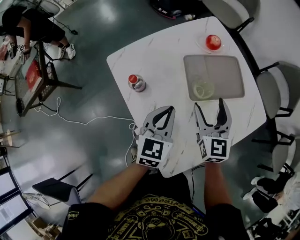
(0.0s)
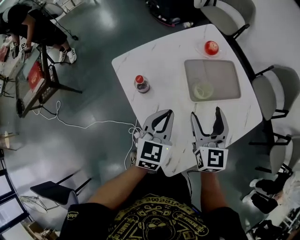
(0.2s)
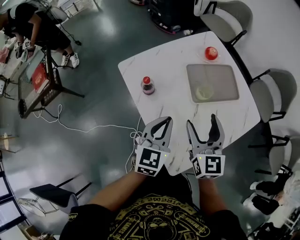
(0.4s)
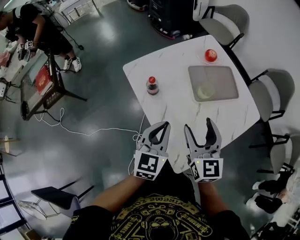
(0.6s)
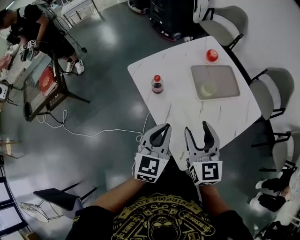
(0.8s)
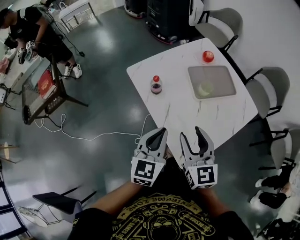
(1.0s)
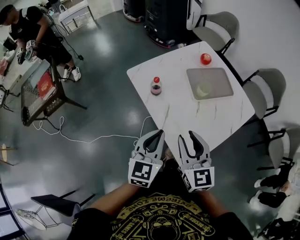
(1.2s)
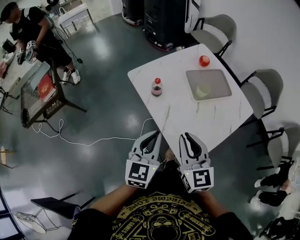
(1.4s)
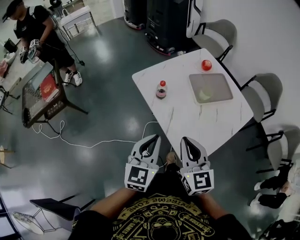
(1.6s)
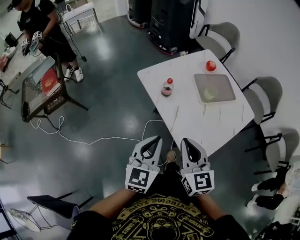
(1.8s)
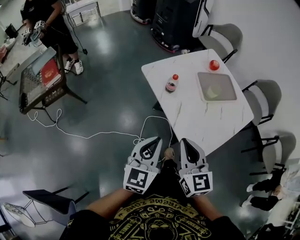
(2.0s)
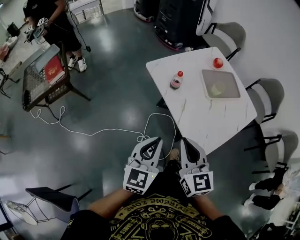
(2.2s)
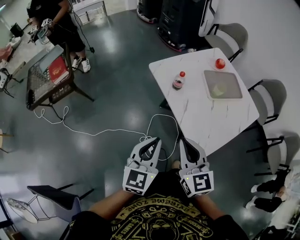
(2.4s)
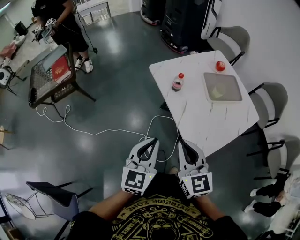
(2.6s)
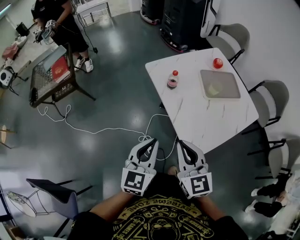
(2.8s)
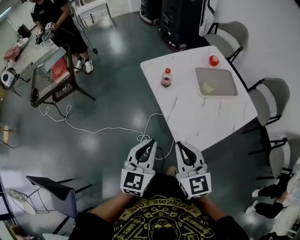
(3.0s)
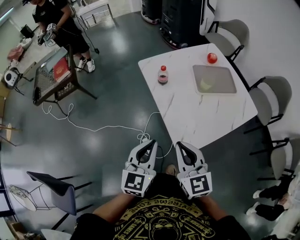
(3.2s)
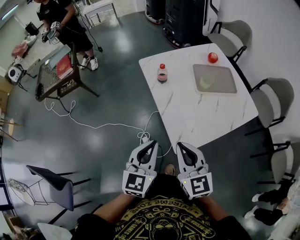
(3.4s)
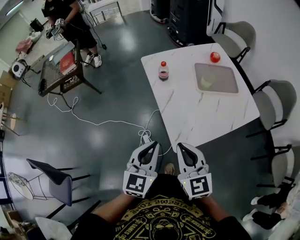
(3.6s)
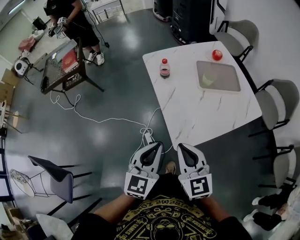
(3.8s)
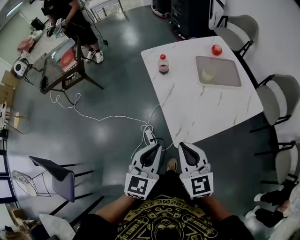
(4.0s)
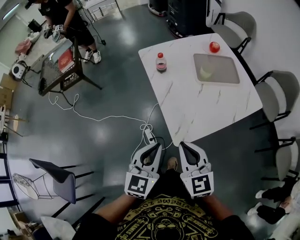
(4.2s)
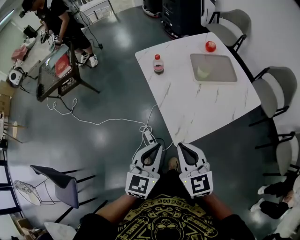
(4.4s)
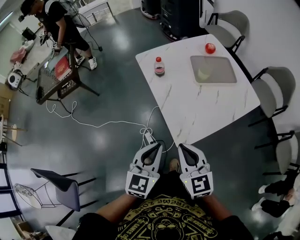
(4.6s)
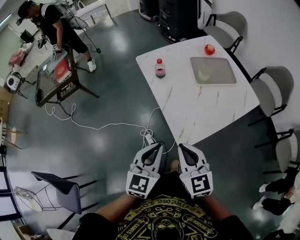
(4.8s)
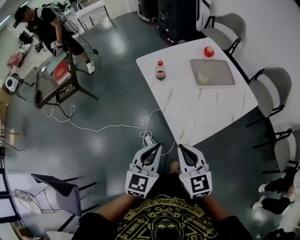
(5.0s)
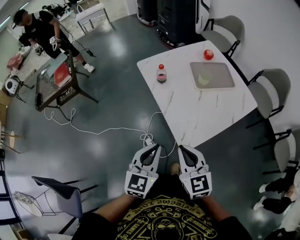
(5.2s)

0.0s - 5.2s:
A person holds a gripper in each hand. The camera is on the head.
0.0s - 1.8s: The grippers both shift backward, to the left and upward by some 35 cm. The right gripper closes.
1.8s - 3.4s: Both grippers travel together backward and to the right, some 15 cm.
3.4s - 5.2s: The grippers move only a little.

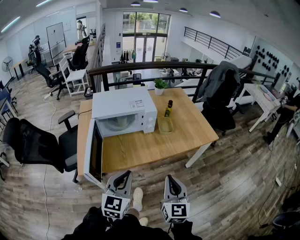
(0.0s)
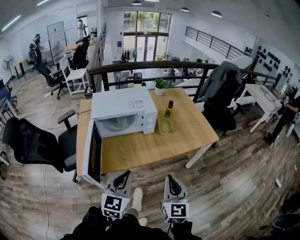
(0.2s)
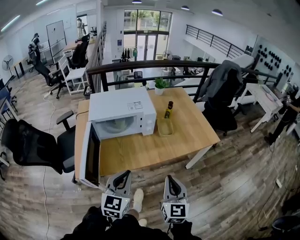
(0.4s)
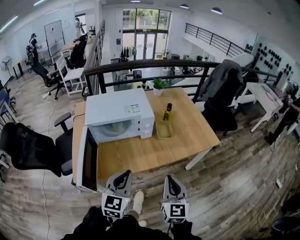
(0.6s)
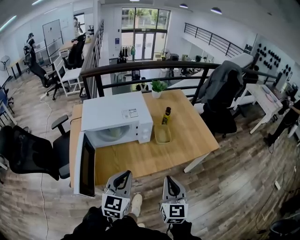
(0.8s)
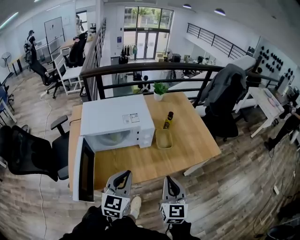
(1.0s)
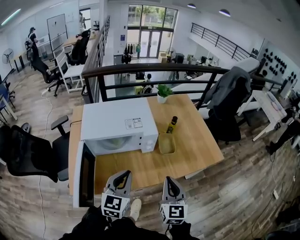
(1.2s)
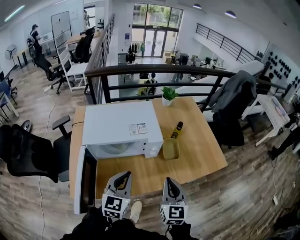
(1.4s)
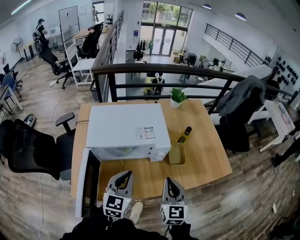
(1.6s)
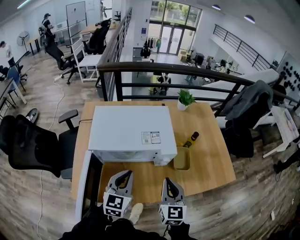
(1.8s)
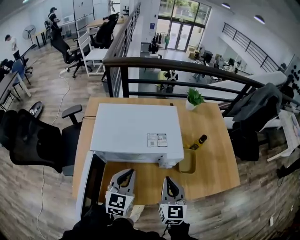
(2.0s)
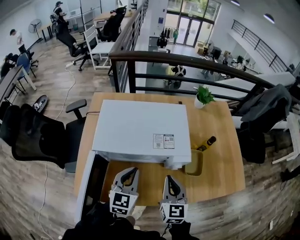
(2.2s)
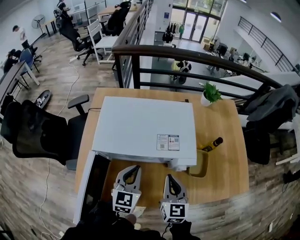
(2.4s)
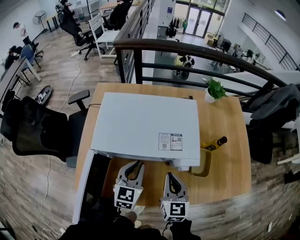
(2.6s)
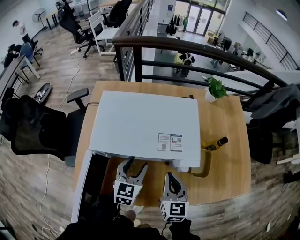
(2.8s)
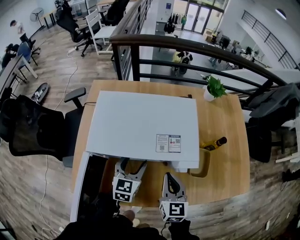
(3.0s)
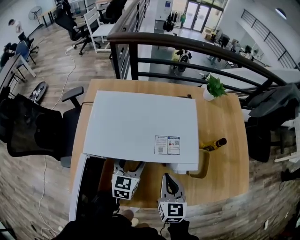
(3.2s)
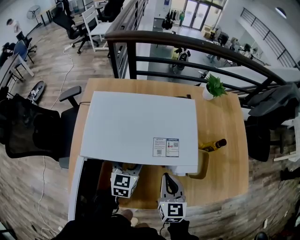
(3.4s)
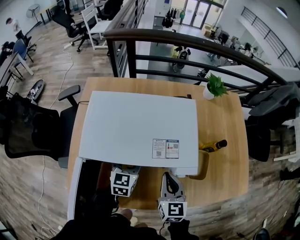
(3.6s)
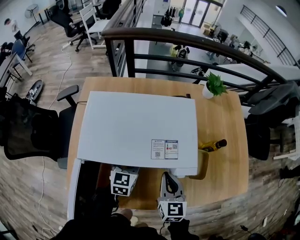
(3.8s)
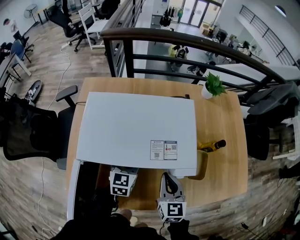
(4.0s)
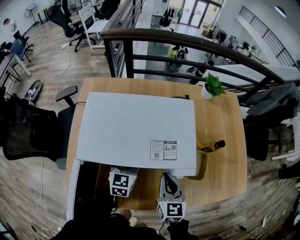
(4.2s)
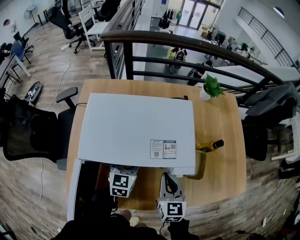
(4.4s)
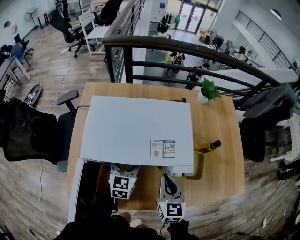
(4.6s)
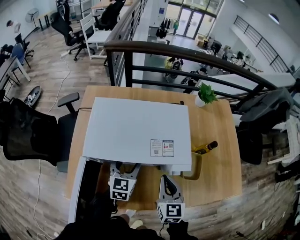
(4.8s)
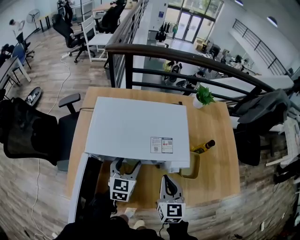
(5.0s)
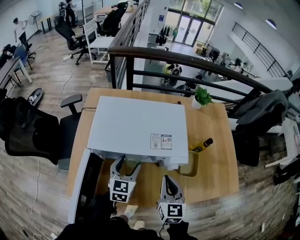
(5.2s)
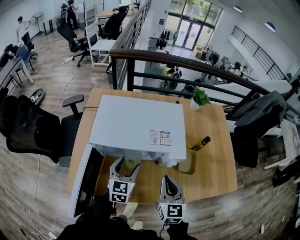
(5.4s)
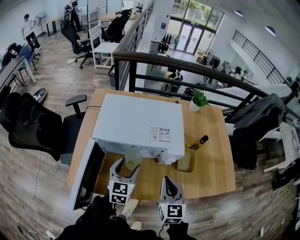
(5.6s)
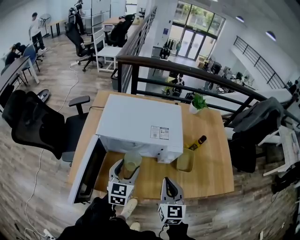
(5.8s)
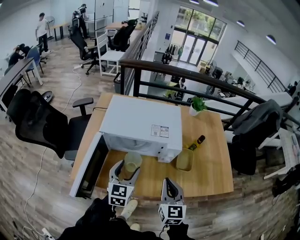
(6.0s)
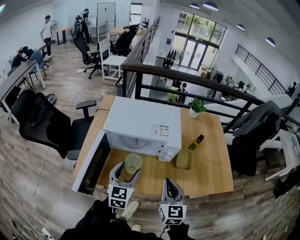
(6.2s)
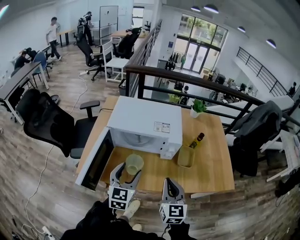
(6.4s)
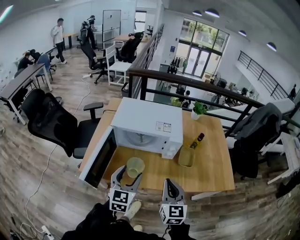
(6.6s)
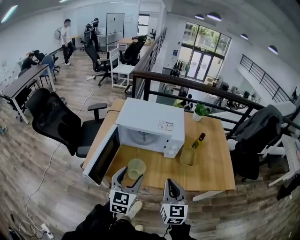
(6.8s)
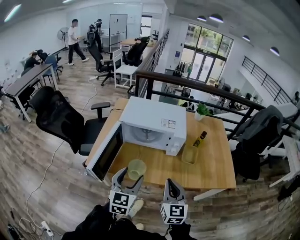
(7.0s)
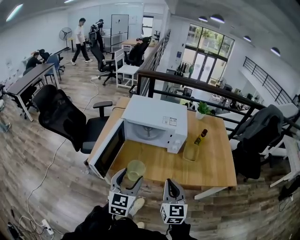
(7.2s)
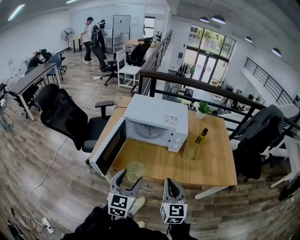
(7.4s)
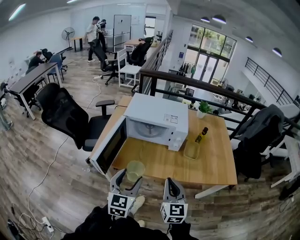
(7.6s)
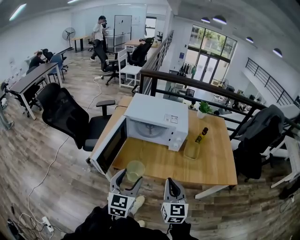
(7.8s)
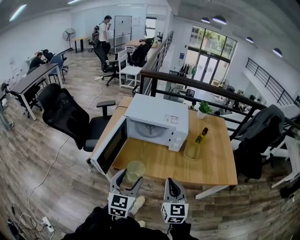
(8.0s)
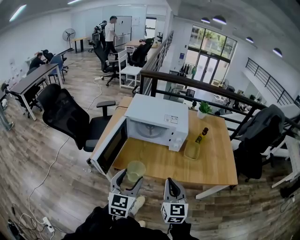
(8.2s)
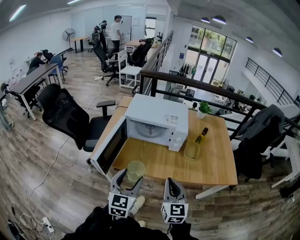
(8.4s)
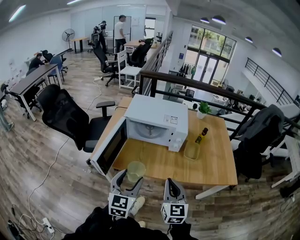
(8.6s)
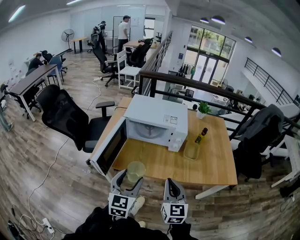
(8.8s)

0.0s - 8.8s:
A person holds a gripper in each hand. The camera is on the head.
0.0s - 1.4s: The two grippers go about 30 cm forward.
1.4s - 3.0s: The left gripper is displaced forward and downward by some 30 cm, and opens its fingers, while the right gripper goes some 25 cm forward, downward and to the left.
3.0s - 4.4s: The left gripper goes approximately 5 cm forward.
4.4s - 5.8s: Both grippers travel together backward and upward, approximately 20 cm.
5.8s - 7.4s: Both grippers travel together backward, roughly 25 cm.
7.4s - 8.8s: Both grippers stay put.

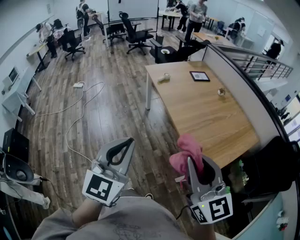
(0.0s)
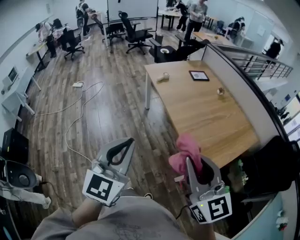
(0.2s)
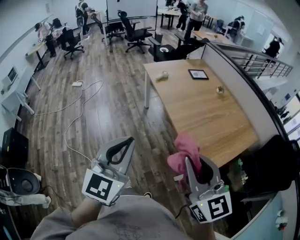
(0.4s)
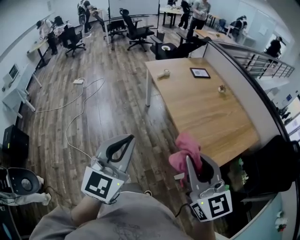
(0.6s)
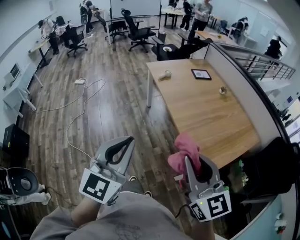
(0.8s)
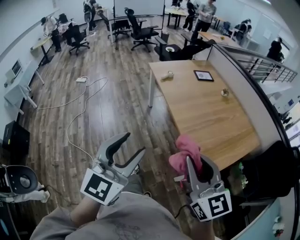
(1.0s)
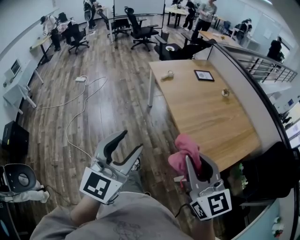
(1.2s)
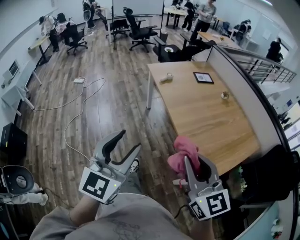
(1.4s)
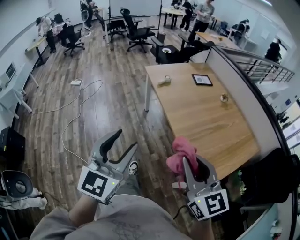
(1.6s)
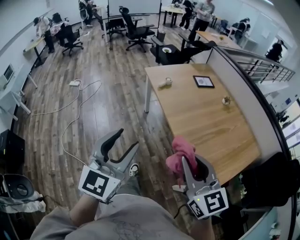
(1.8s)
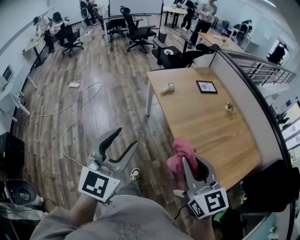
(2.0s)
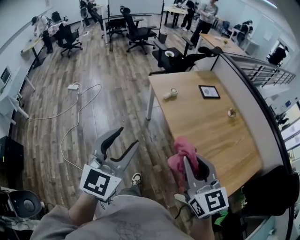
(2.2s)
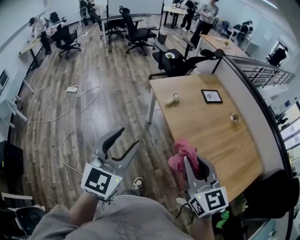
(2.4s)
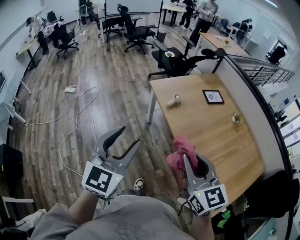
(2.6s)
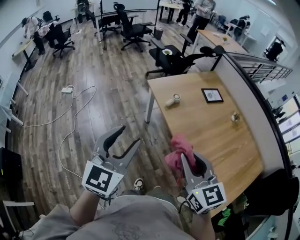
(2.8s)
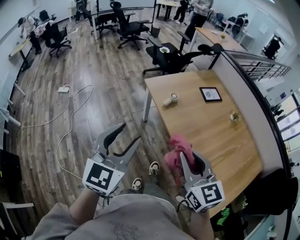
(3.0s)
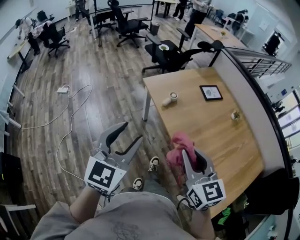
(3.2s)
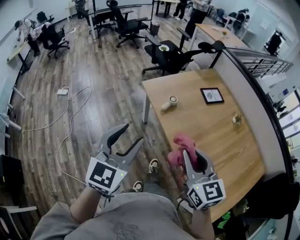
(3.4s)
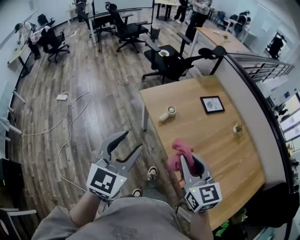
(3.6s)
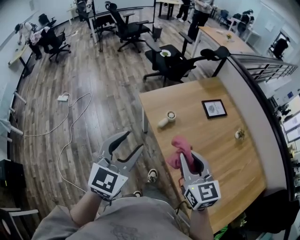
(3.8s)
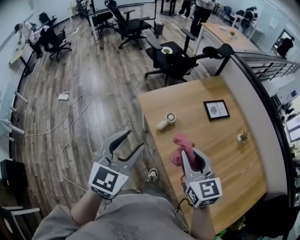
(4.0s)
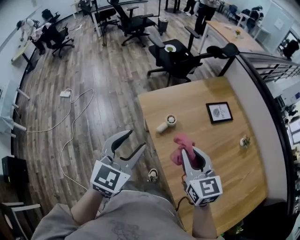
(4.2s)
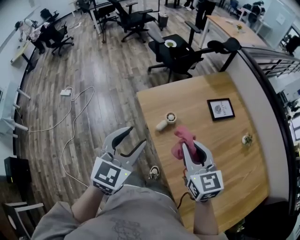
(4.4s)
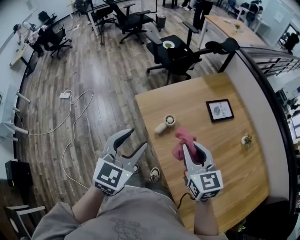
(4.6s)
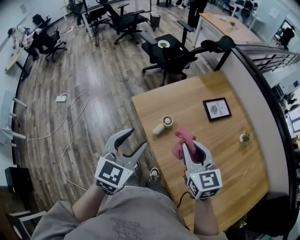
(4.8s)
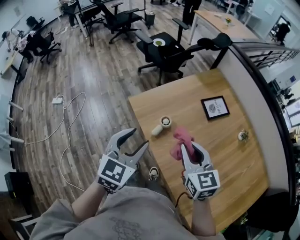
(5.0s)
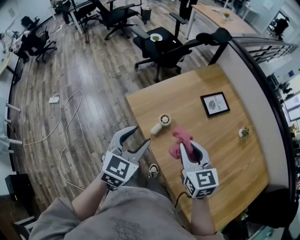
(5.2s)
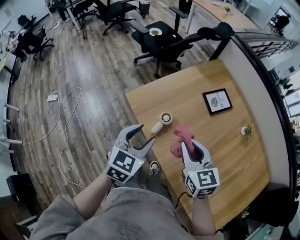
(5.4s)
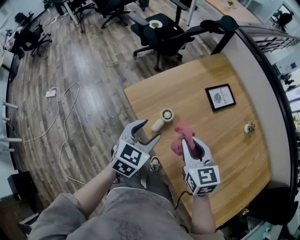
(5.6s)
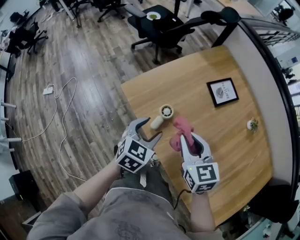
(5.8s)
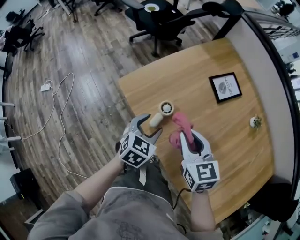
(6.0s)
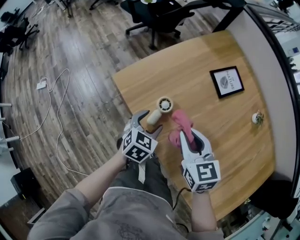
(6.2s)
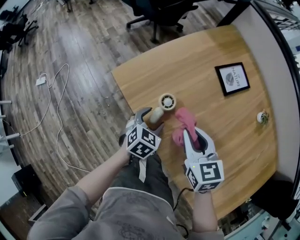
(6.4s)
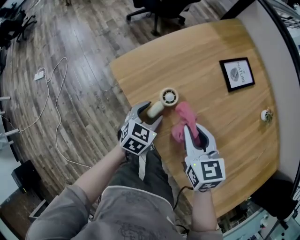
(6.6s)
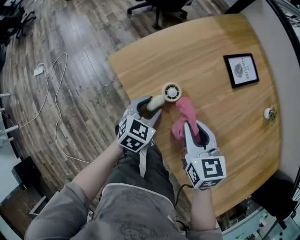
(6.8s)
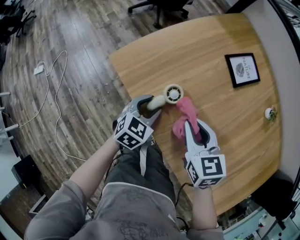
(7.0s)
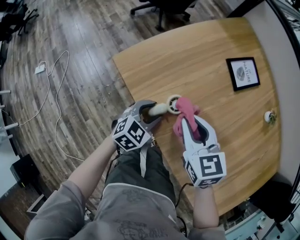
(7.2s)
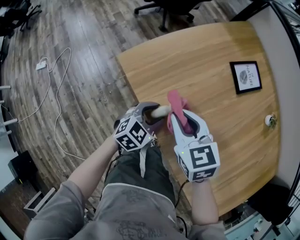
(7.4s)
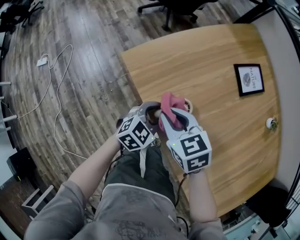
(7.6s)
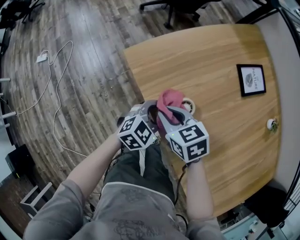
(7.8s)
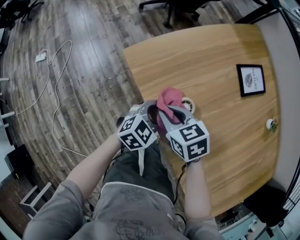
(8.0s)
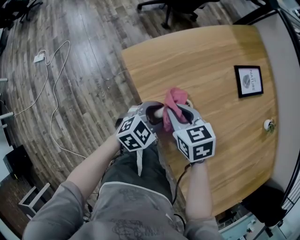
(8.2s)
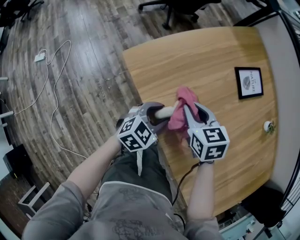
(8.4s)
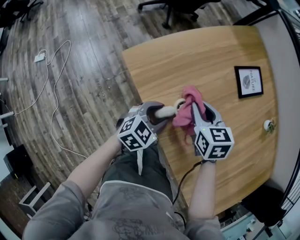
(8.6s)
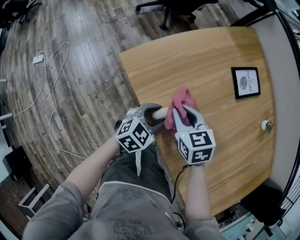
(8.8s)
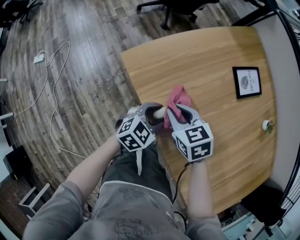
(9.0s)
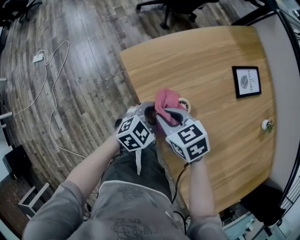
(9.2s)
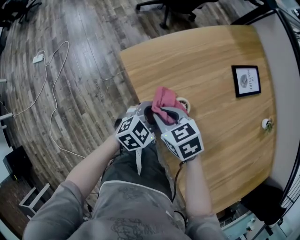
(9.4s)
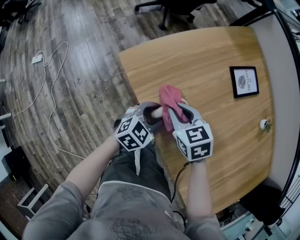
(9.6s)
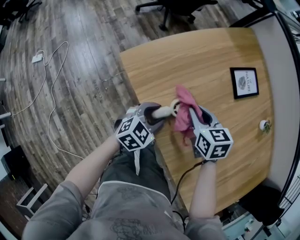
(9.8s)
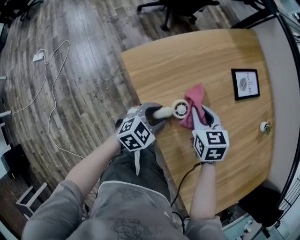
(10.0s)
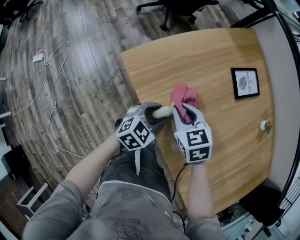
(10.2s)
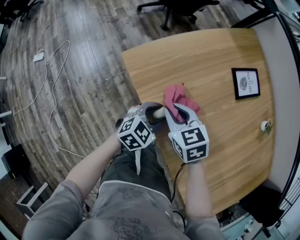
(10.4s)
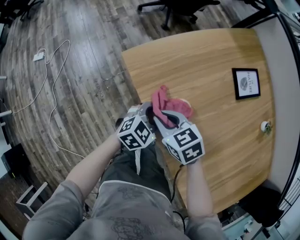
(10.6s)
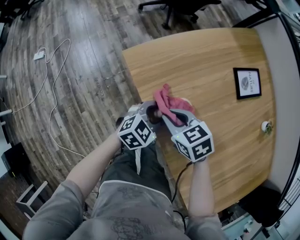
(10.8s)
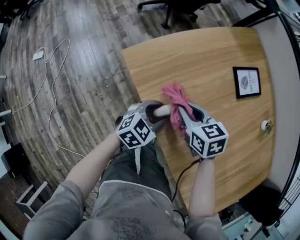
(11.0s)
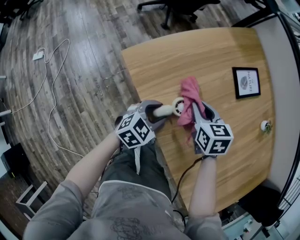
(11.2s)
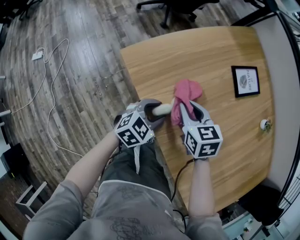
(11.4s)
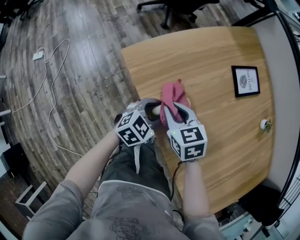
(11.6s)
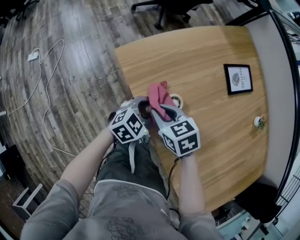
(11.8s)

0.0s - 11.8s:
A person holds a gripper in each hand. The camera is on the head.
0.0s - 1.4s: The left gripper opens up. Meanwhile the right gripper travels forward by some 5 cm.
1.4s - 3.0s: The two grippers go some 40 cm forward.
3.0s - 4.4s: The grippers both shift forward by some 30 cm.
4.4s - 6.0s: The left gripper travels downward and forward by about 30 cm, and swivels about 30 degrees. The right gripper is displaced downward and forward by approximately 15 cm.
6.0s - 7.4s: The left gripper moves downward, some 10 cm, while the right gripper moves downward and to the left, some 10 cm.
7.4s - 8.8s: The right gripper swings left and right, roughly 10 cm each way, with 2 reversals.
8.8s - 10.4s: The right gripper goes left and right, about 15 cm each way, reversing 2 times.
10.4s - 11.8s: The right gripper moves approximately 10 cm to the right and comes back.
